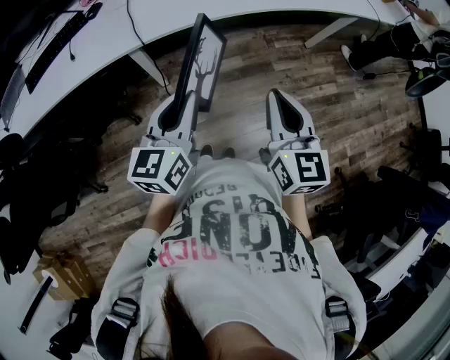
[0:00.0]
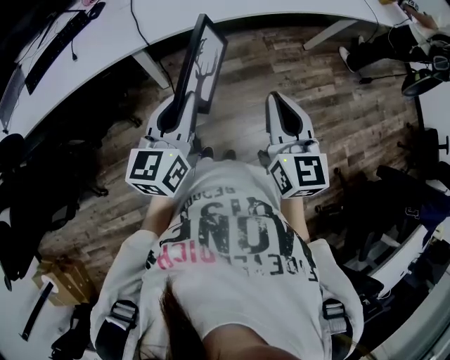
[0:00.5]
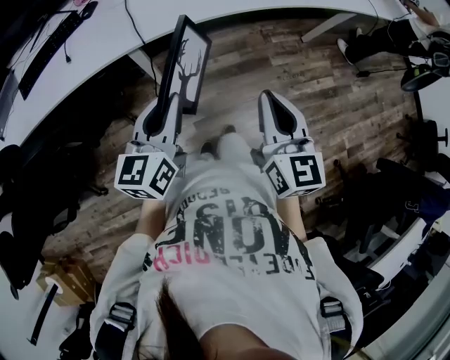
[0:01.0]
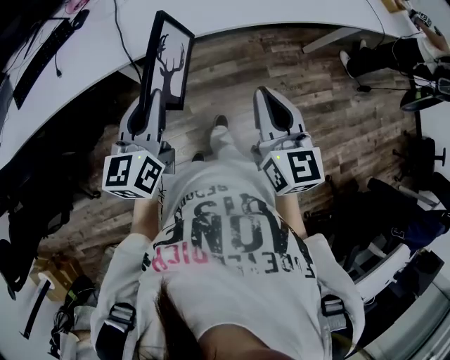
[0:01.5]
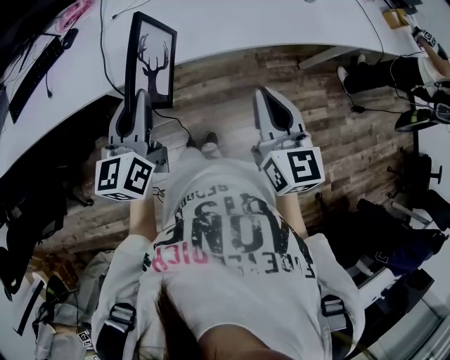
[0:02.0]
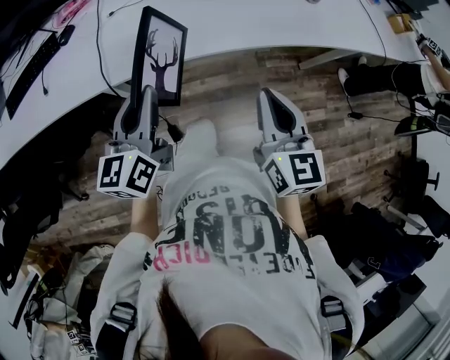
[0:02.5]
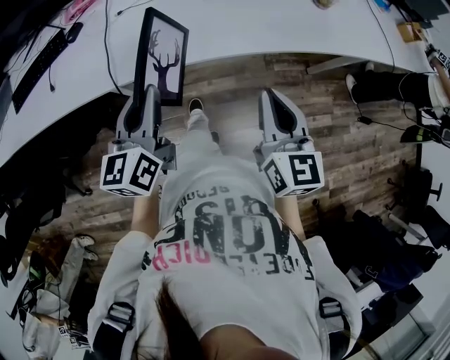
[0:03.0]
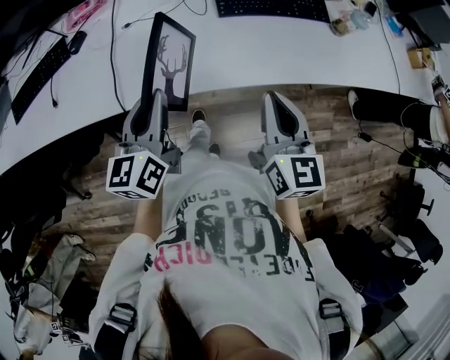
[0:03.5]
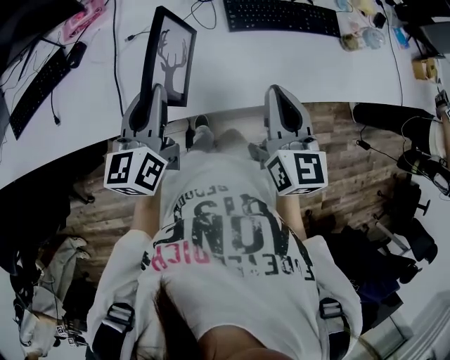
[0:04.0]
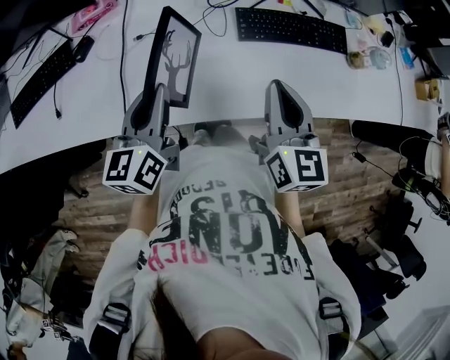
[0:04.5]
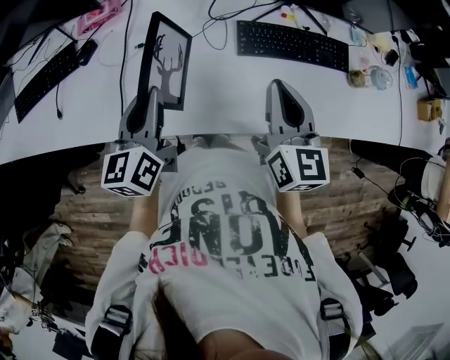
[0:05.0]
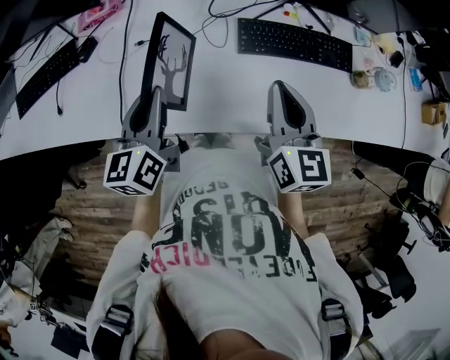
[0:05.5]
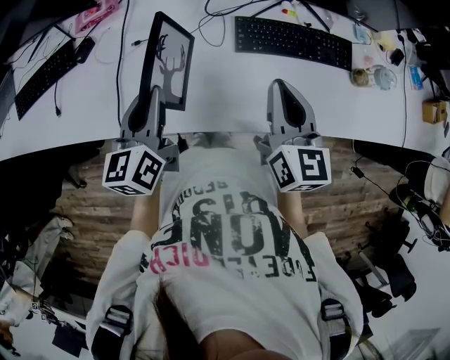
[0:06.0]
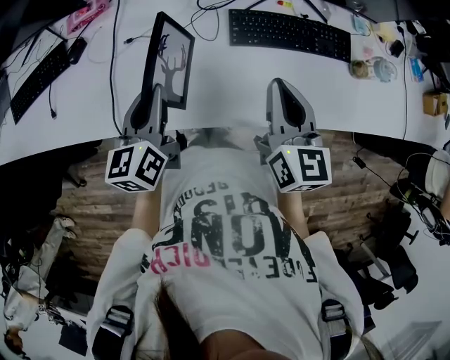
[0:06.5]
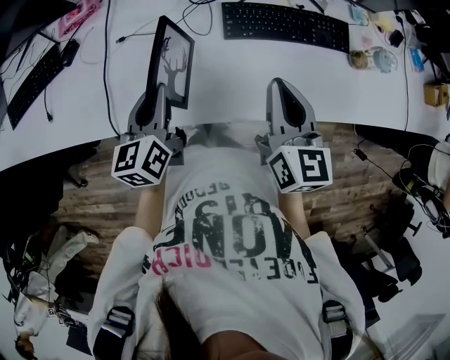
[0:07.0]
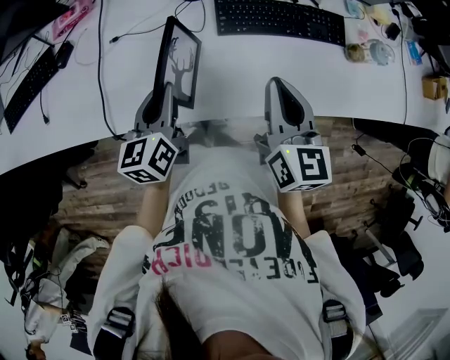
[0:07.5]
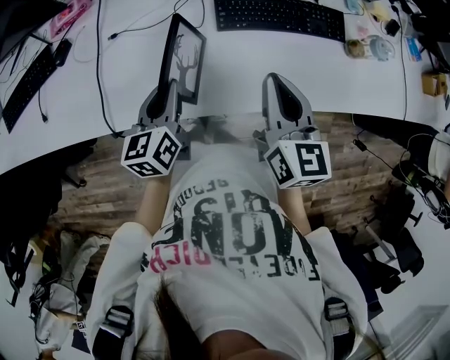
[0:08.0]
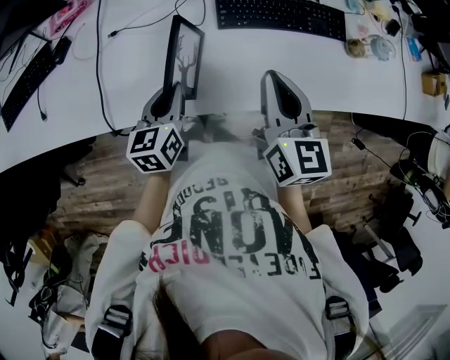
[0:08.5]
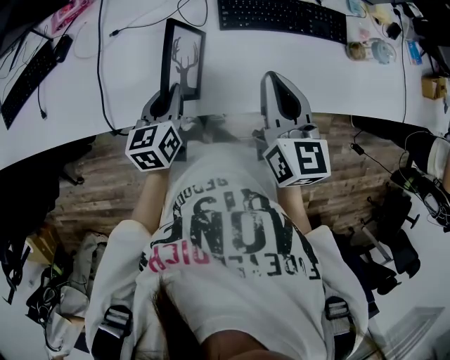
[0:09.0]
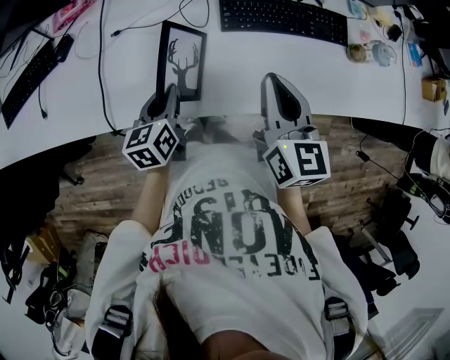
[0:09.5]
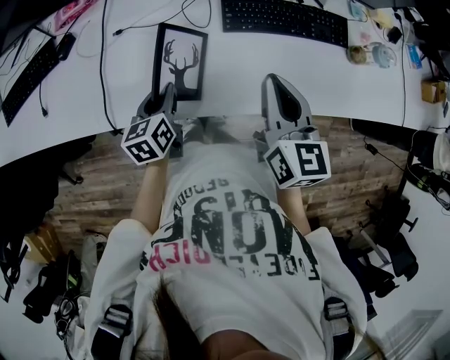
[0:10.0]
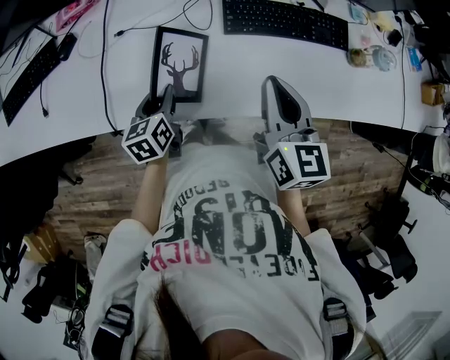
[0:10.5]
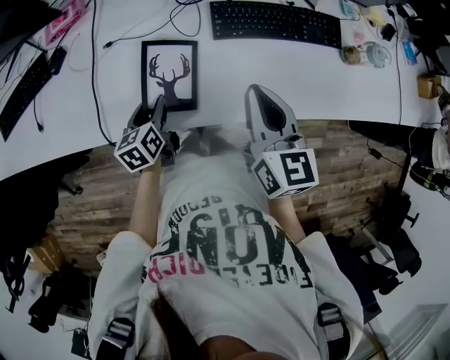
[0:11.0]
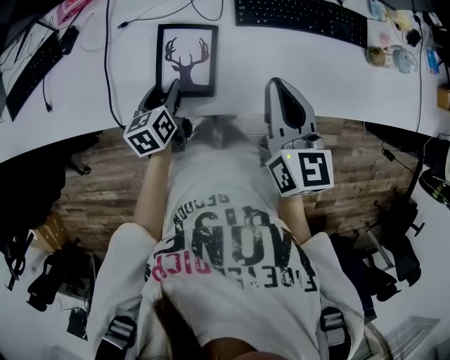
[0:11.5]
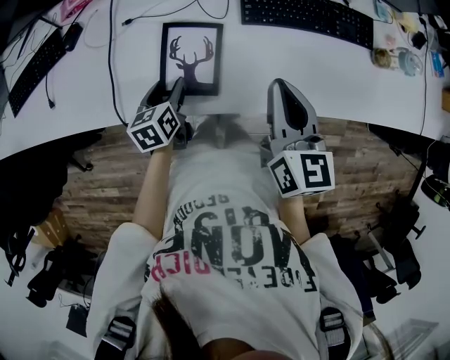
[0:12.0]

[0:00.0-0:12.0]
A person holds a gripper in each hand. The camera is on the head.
0:00.0 to 0:02.0: The two grippers go about 20 cm forward.
0:02.0 to 0:04.0: Both grippers travel together forward, roughly 20 cm.
0:04.0 to 0:06.0: The right gripper heads forward, covering about 10 cm.
0:06.0 to 0:08.0: The left gripper shifts roughly 10 cm downward and to the right.
0:08.0 to 0:10.0: The left gripper is displaced downward by about 5 cm.
0:10.0 to 0:12.0: The left gripper moves downward, about 5 cm, and opens its fingers.

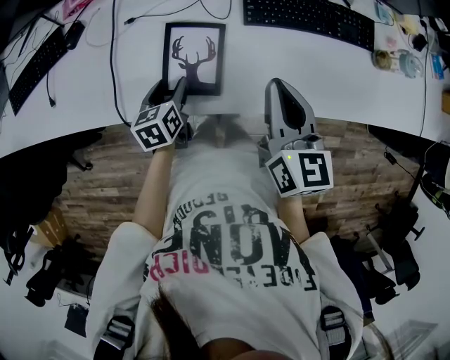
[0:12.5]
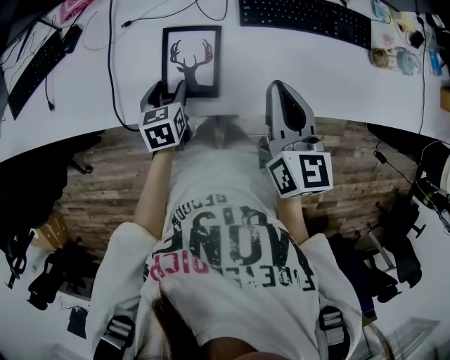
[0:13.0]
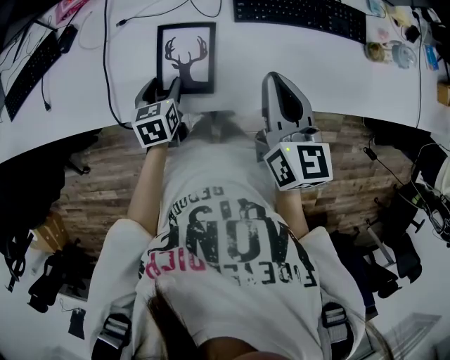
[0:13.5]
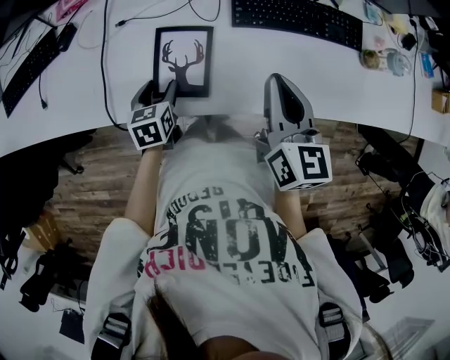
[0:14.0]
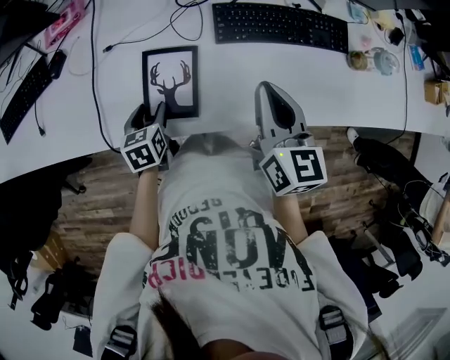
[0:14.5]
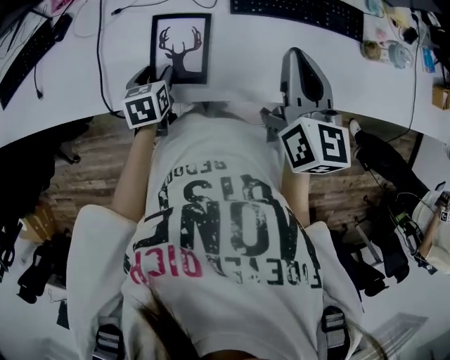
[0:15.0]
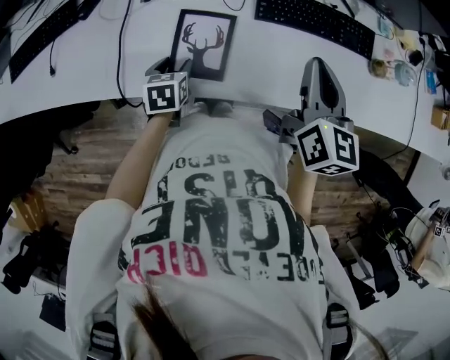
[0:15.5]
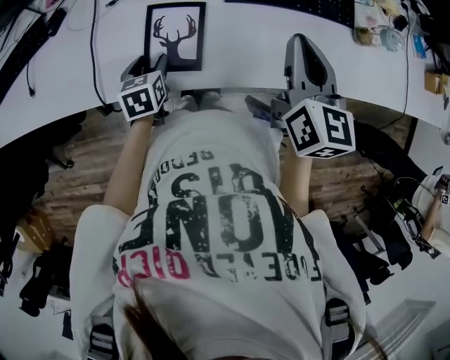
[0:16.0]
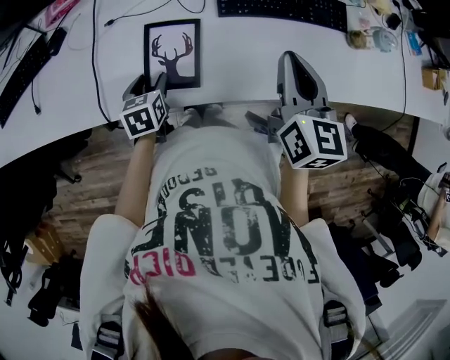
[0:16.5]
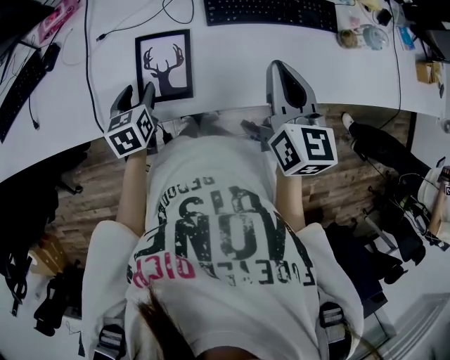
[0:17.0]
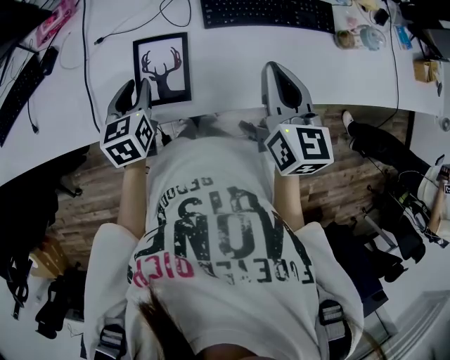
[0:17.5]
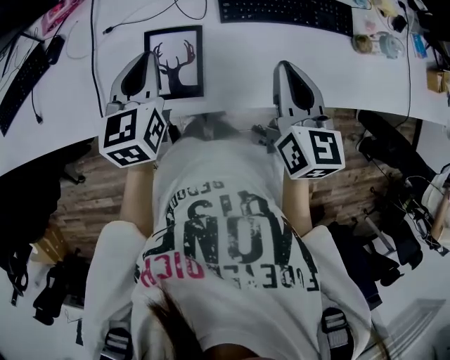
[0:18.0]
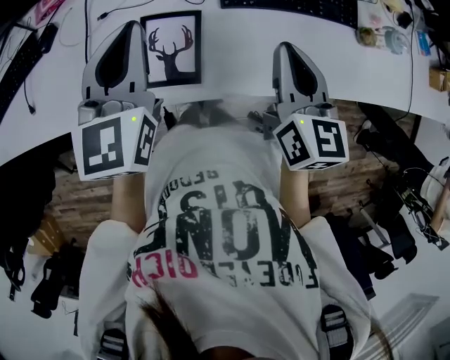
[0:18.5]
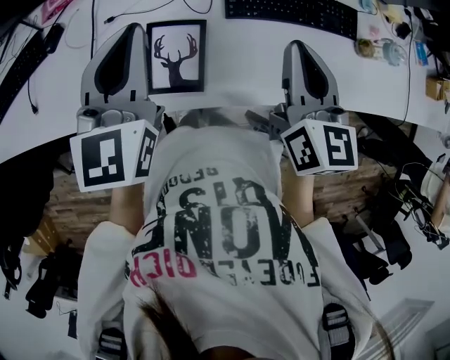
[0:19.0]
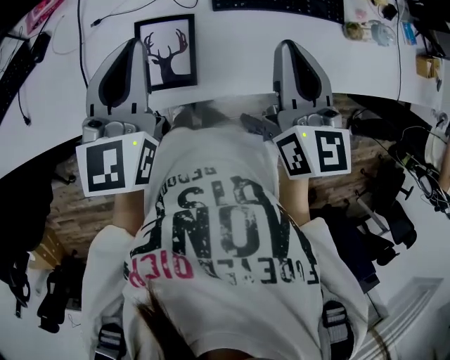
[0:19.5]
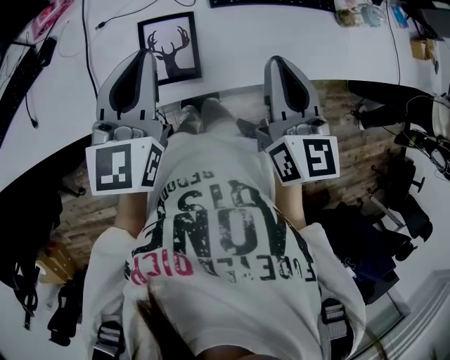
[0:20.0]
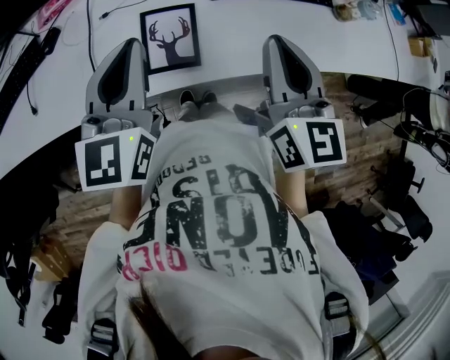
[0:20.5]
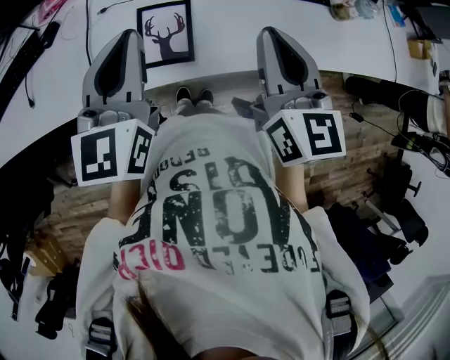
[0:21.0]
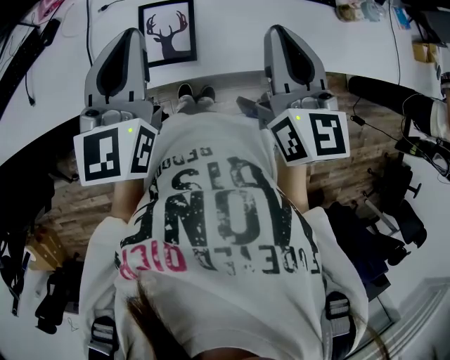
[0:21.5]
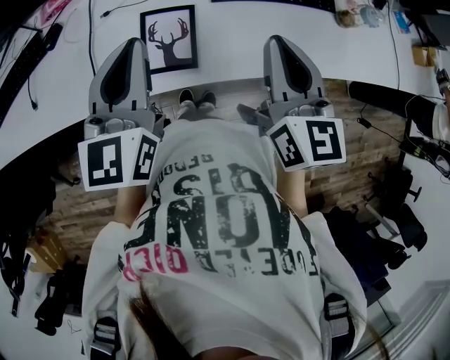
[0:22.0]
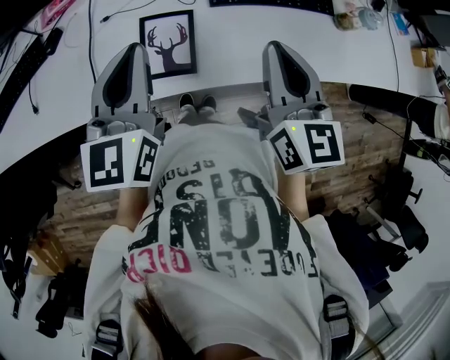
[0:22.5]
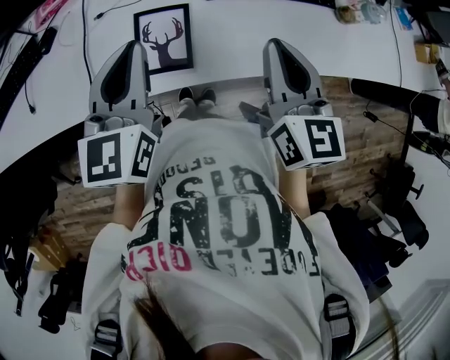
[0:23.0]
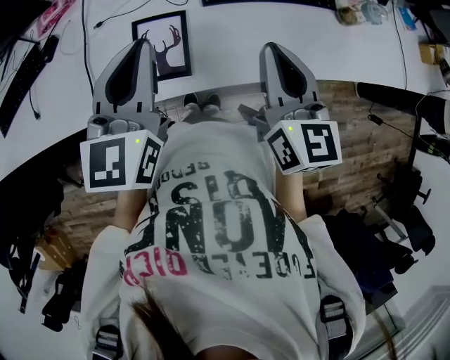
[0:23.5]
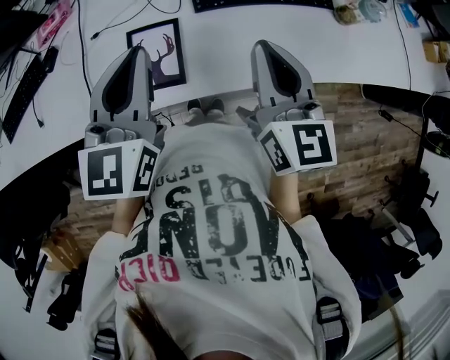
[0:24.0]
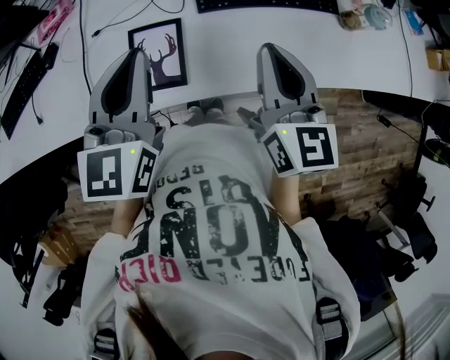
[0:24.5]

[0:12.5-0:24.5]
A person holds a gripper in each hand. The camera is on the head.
0:12.5 to 0:14.5: There are only small adjustments of the grippers.
0:14.5 to 0:16.5: The grippers make only small movements.
0:16.5 to 0:18.5: The left gripper is displaced upward by approximately 25 cm, tilts its fingers approximately 40 degrees upward, and closes its fingers.
0:18.5 to 0:20.5: The left gripper goes approximately 10 cm backward; the right gripper goes roughly 10 cm backward and upward.
0:20.5 to 0:22.5: The grippers move only a little.
0:22.5 to 0:24.5: The left gripper shifts roughly 5 cm to the right, while the right gripper changes place by some 5 cm.

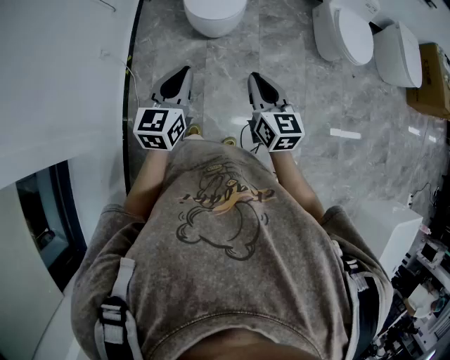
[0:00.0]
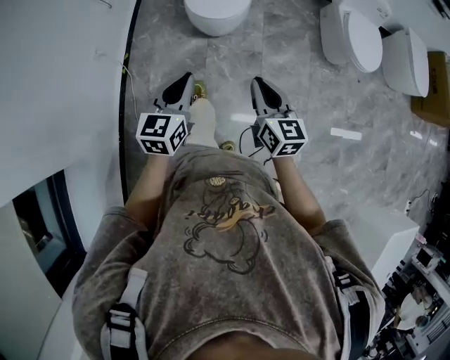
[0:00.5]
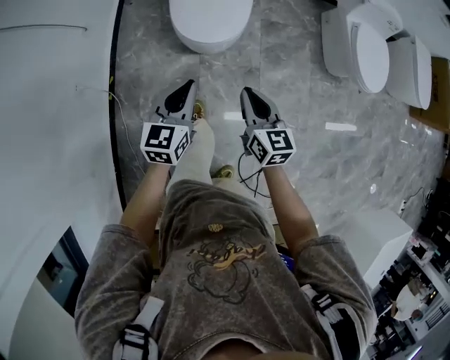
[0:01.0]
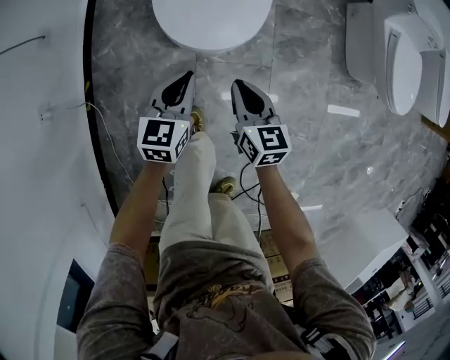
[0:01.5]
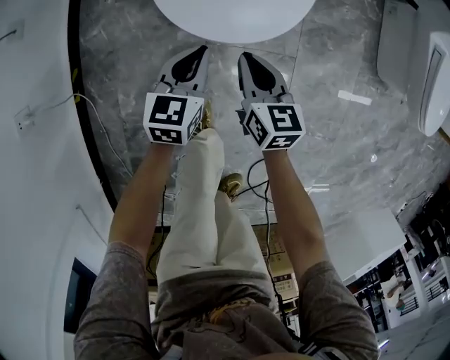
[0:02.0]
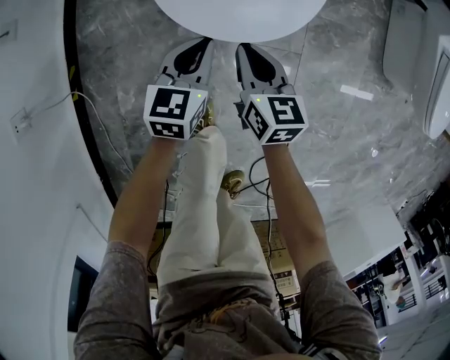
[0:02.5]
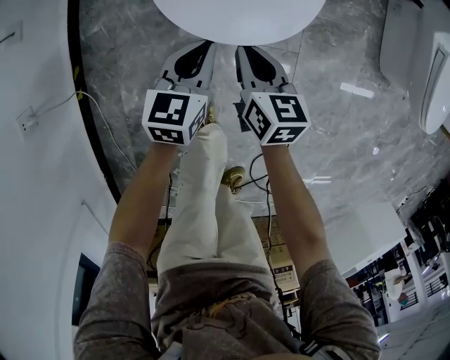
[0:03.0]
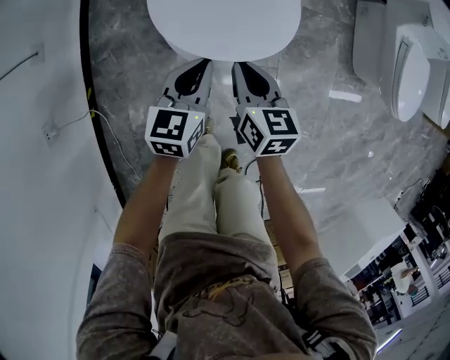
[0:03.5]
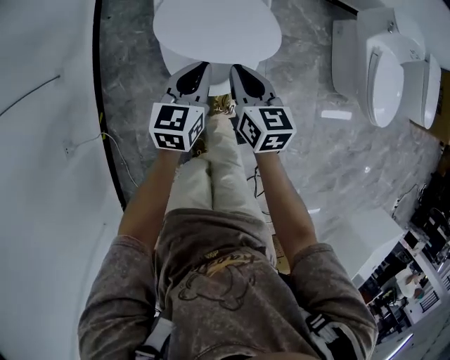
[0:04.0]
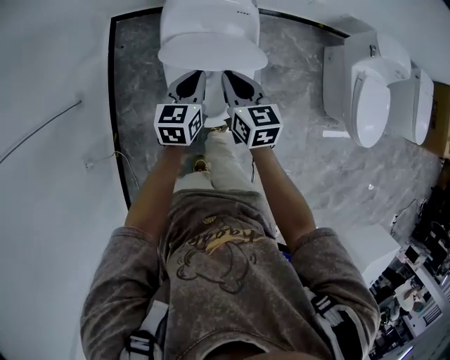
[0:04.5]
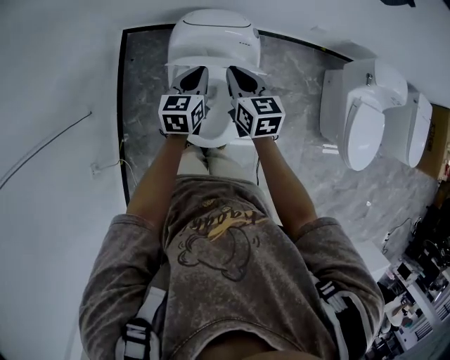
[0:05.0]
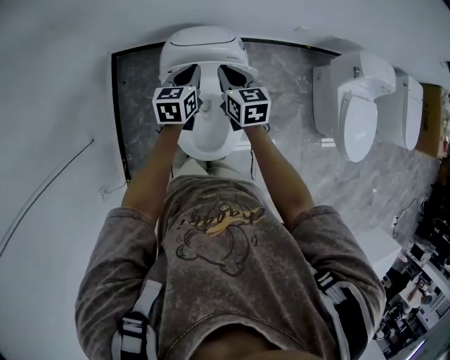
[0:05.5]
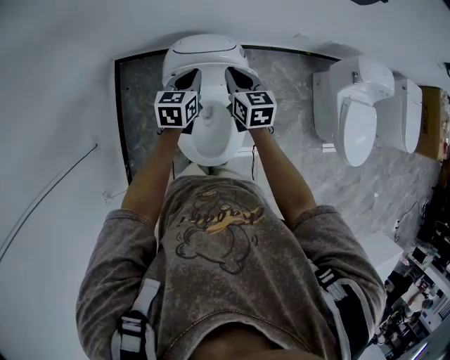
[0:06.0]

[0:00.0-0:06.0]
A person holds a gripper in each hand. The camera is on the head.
0:00.0 to 0:02.0: The pair of grippers is taken forward, about 40 cm. Both grippers travel together downward, roughly 60 cm.
0:02.0 to 0:04.0: The grippers both shift upward and forward by some 30 cm.
0:04.0 to 0:06.0: Both grippers travel together forward and upward, about 35 cm.
